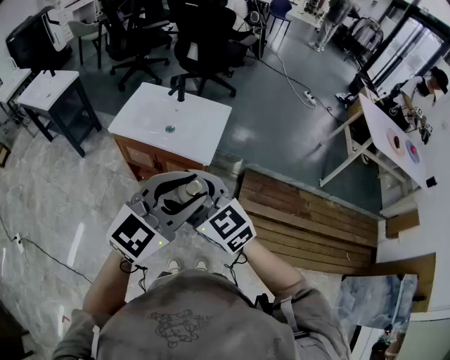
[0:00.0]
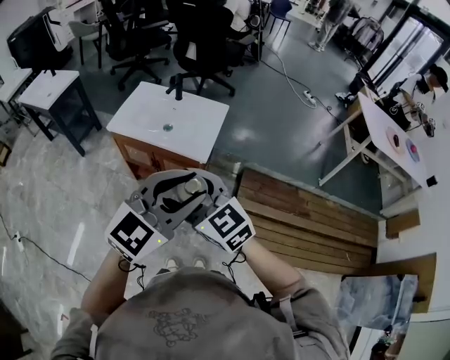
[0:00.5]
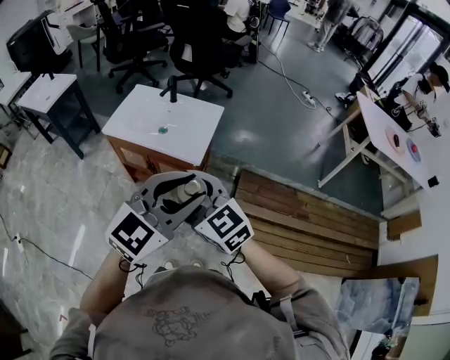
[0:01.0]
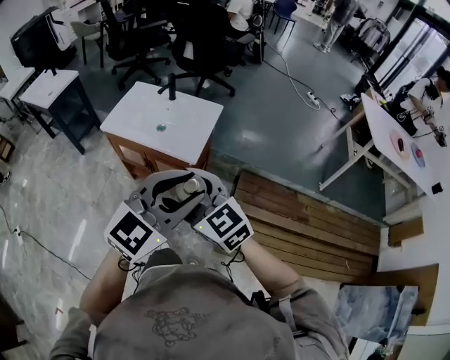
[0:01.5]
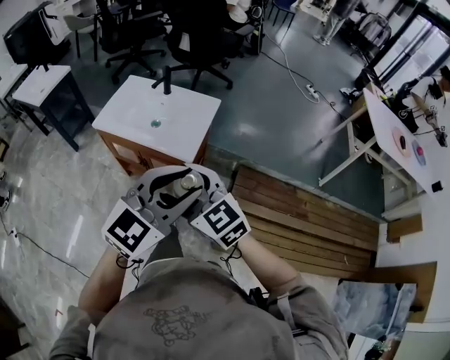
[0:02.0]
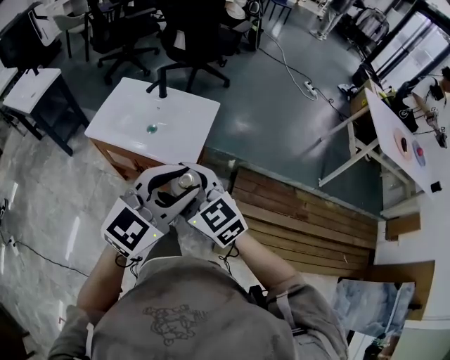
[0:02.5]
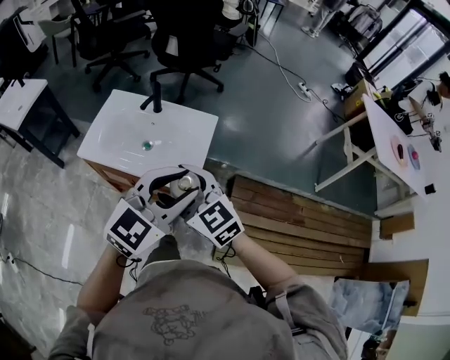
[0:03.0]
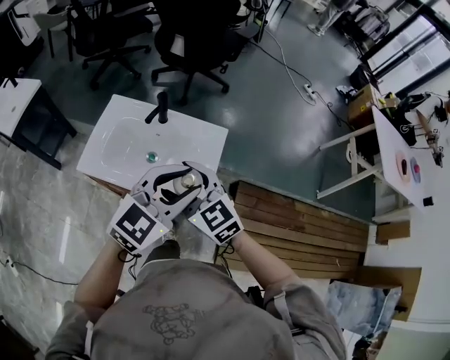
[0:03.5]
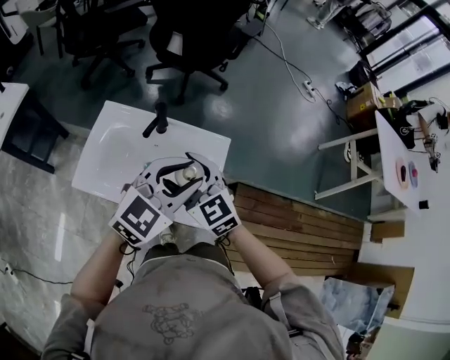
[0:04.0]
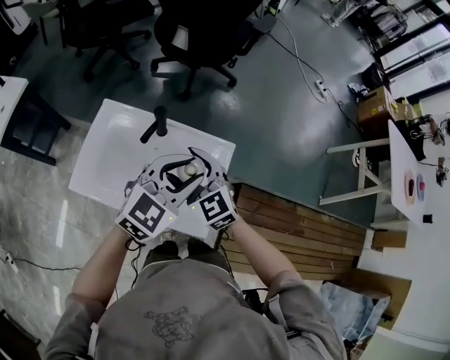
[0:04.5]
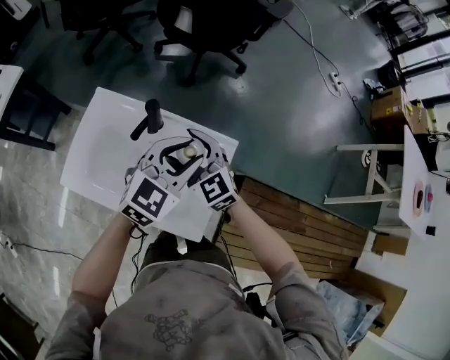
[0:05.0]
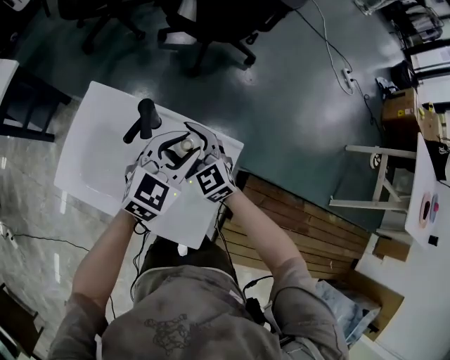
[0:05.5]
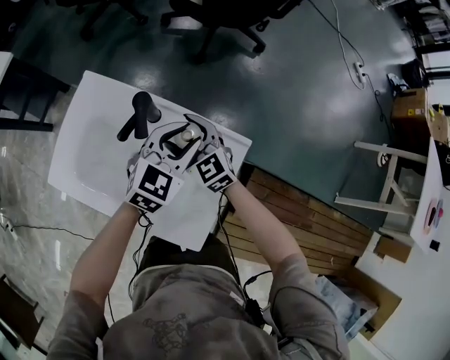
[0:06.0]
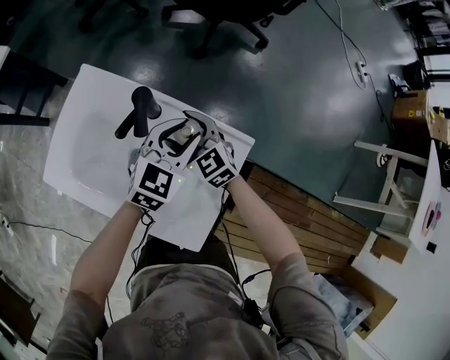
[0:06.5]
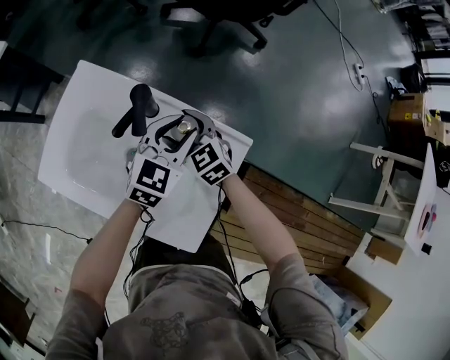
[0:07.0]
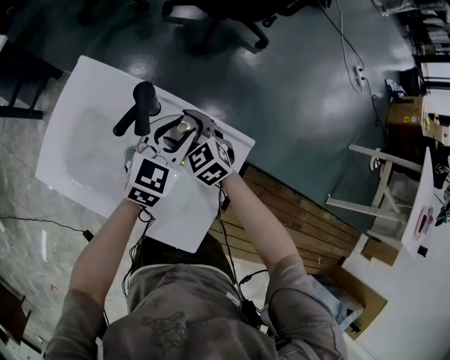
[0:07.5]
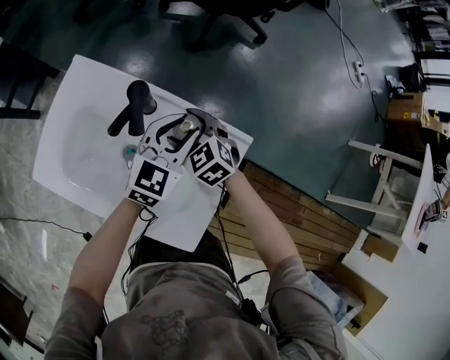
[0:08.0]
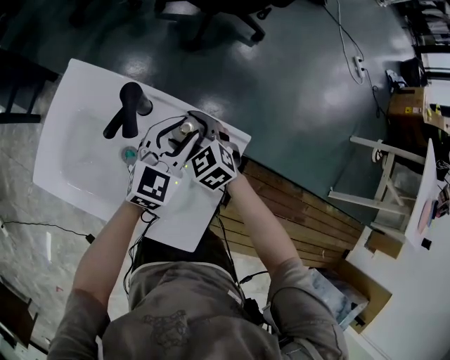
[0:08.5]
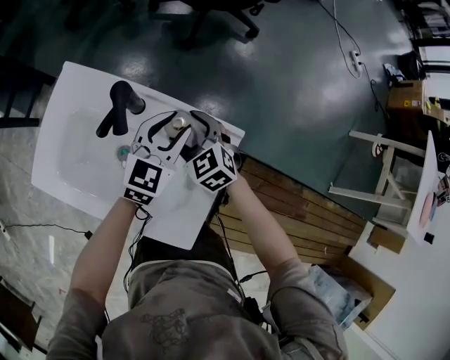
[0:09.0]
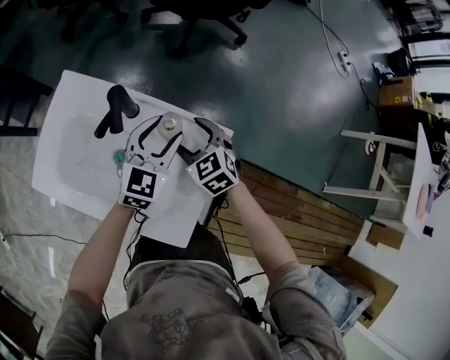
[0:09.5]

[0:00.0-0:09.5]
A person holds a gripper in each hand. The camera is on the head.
0:00.0 to 0:02.0: The left gripper shifts approximately 10 cm to the right and forward. The right gripper is displaced to the right by roughly 10 cm.
0:02.0 to 0:04.0: Both grippers are carried forward, some 40 cm.
0:04.0 to 0:05.5: Both grippers travel together forward and downward, roughly 25 cm.
0:05.5 to 0:07.5: Both grippers move downward, roughly 10 cm.
0:07.5 to 0:09.5: The right gripper moves to the right, roughly 10 cm.

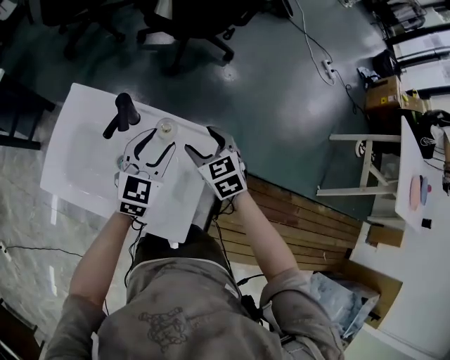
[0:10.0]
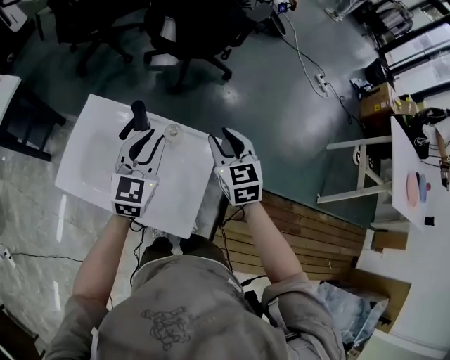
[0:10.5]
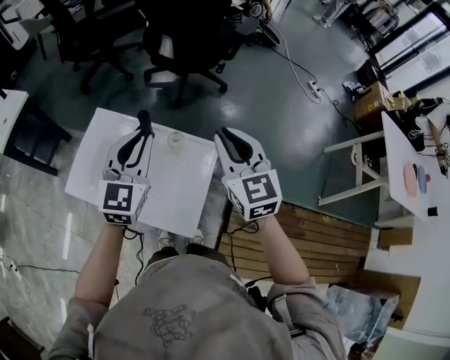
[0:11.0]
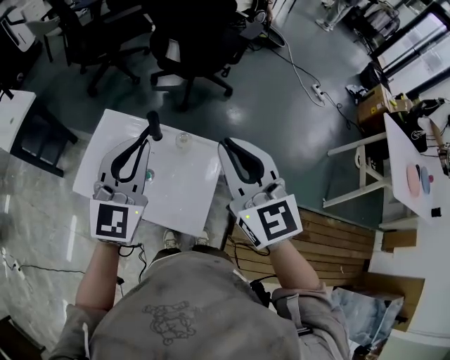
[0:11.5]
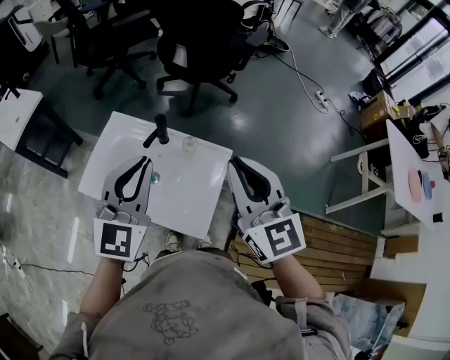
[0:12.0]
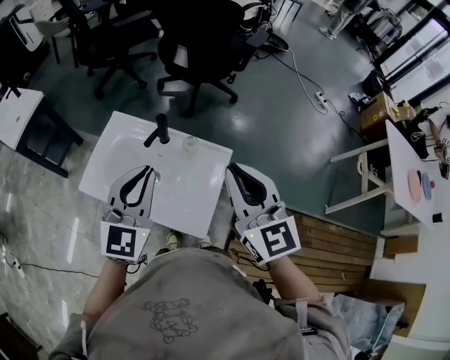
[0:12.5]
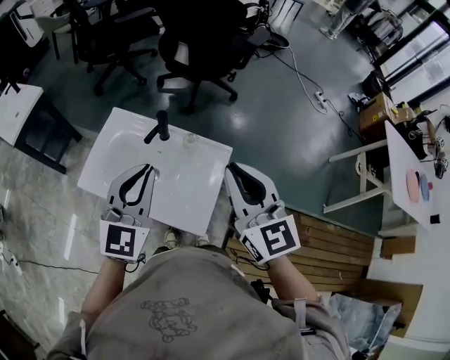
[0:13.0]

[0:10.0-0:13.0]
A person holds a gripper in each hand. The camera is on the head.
0:10.0 to 0:11.5: The grippers both shift upward and backward by roughly 35 cm. The right gripper angles its fingers upward, by about 40 degrees, and closes up. The left gripper changes its angle by about 20 degrees, and closes up.
0:11.5 to 0:13.0: The right gripper changes place by about 5 cm; the left gripper is displaced backward by about 5 cm.

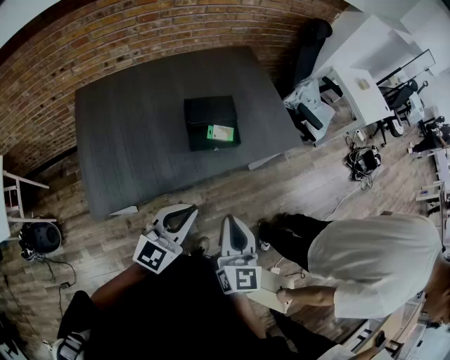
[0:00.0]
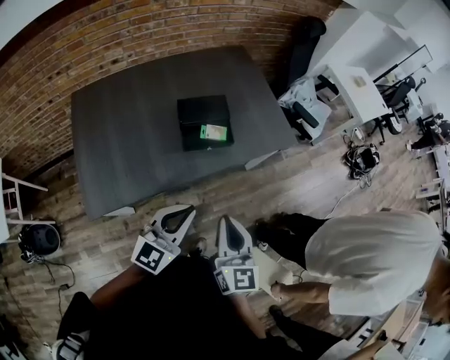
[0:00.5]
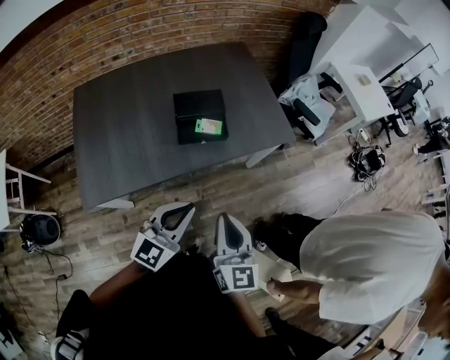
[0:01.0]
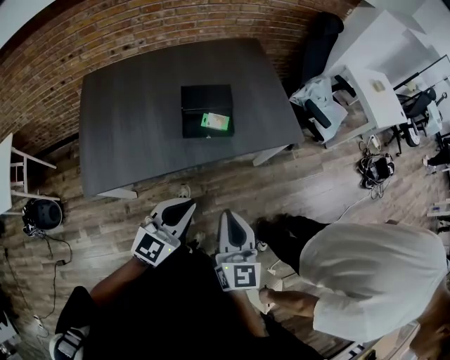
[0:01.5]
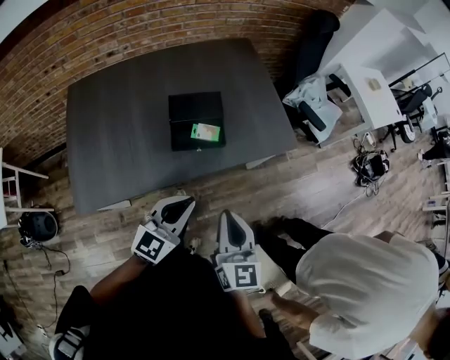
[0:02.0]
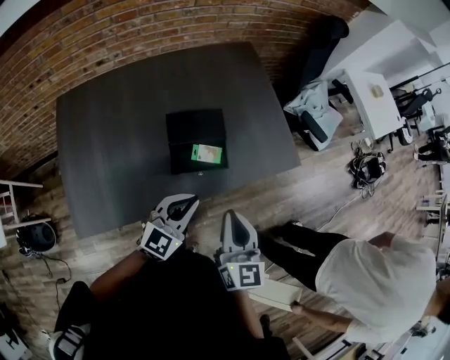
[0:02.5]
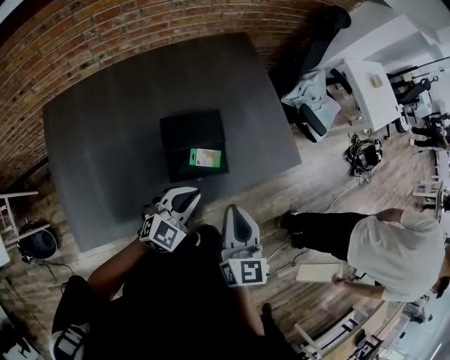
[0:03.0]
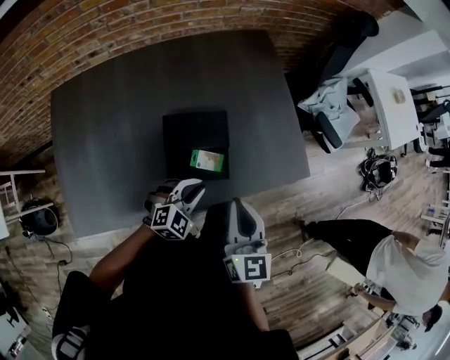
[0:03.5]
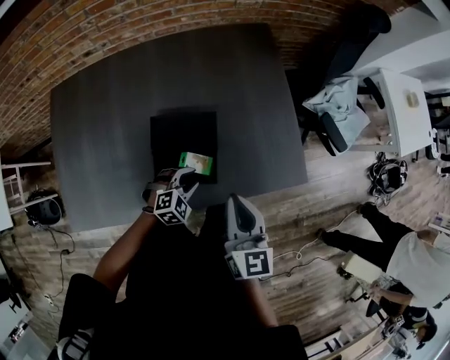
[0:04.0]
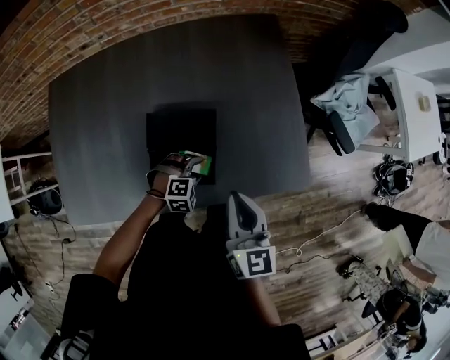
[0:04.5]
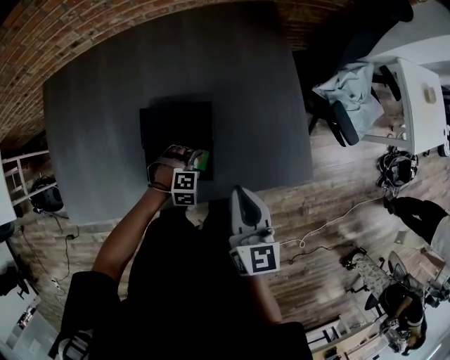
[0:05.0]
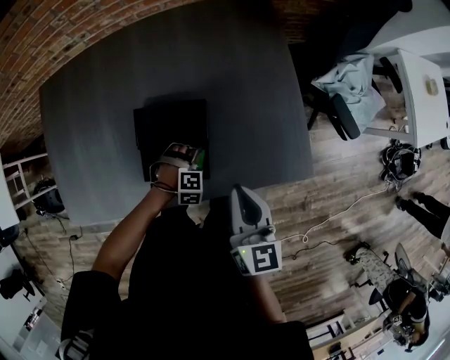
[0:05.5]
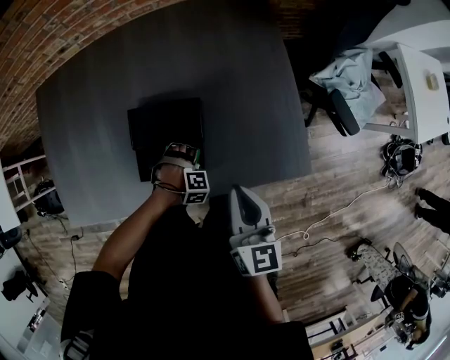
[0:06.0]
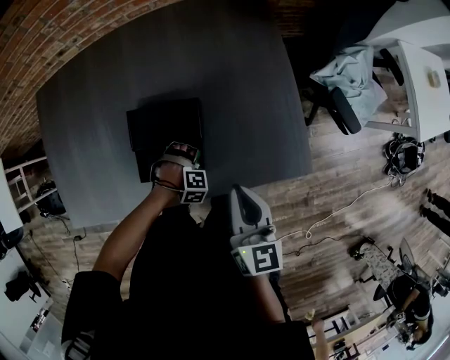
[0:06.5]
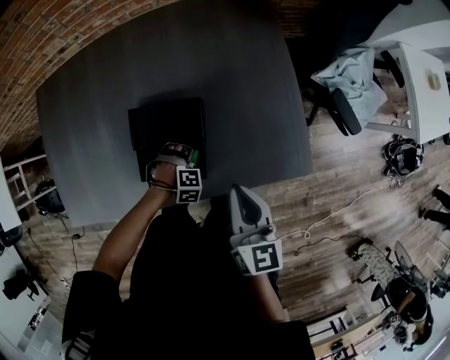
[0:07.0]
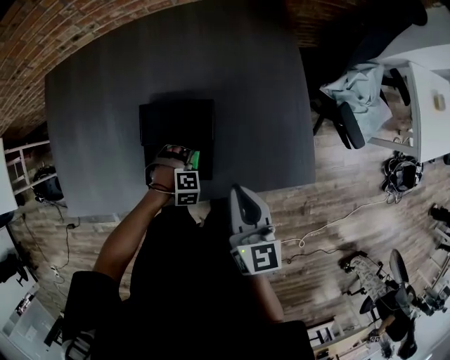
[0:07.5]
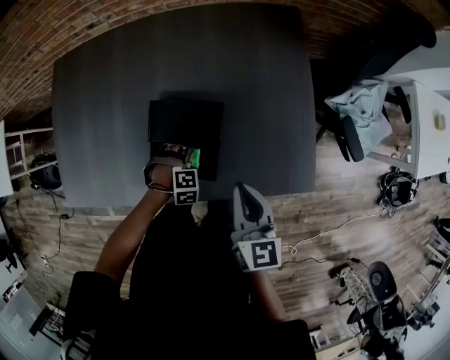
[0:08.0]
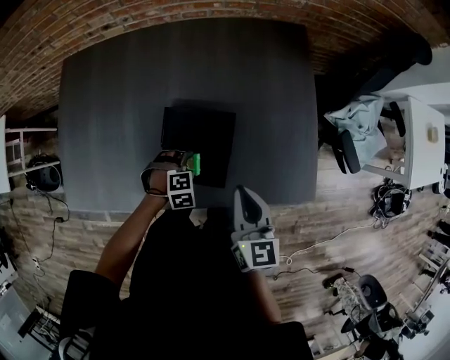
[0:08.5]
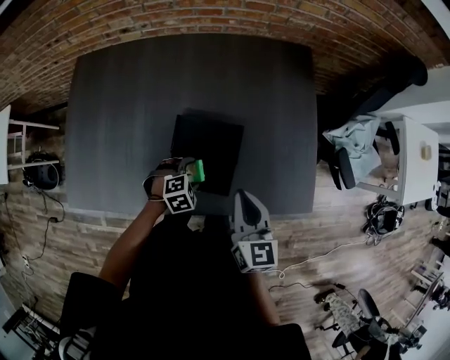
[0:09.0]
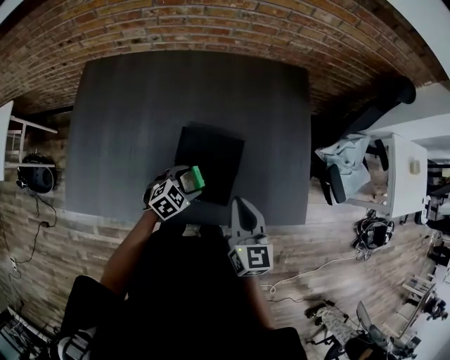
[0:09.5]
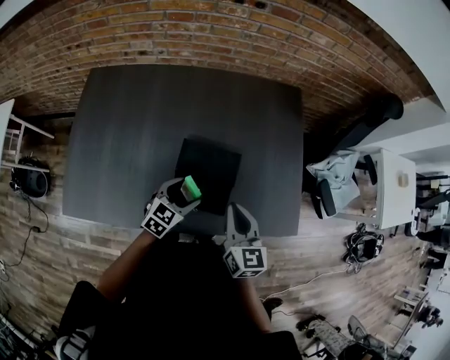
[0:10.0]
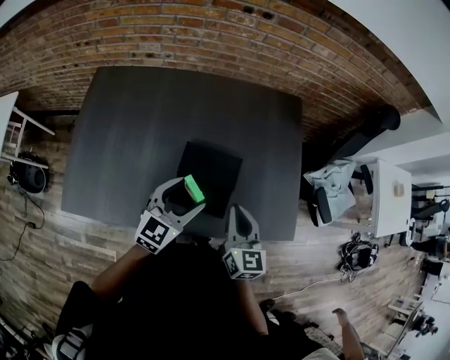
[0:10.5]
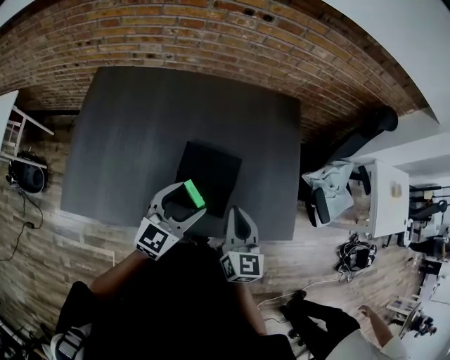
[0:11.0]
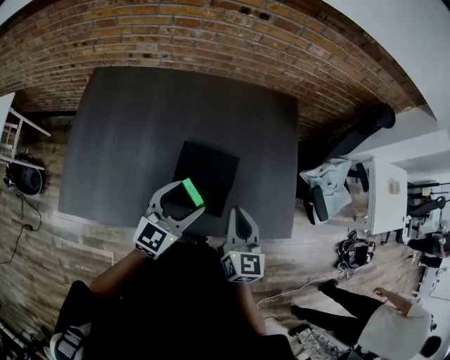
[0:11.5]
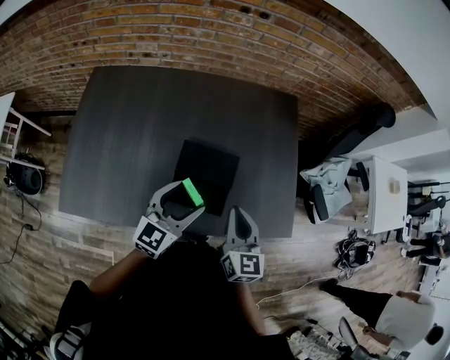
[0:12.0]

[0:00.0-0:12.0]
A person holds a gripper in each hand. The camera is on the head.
0:00.0 to 0:02.0: The left gripper is displaced forward and to the right by some 15 cm, while the right gripper is displaced to the right and forward by roughly 10 cm.
0:02.0 to 0:04.0: The right gripper is displaced forward by approximately 30 cm. The left gripper is displaced forward and downward by some 40 cm, and tips its fingers downward by about 40 degrees.
0:04.0 to 0:06.0: The right gripper ends up approximately 10 cm from where it was, while the left gripper heads downward, covering about 10 cm, changes its angle by some 50 degrees, and opens its fingers.
0:06.0 to 0:08.0: The left gripper moves some 5 cm.
0:08.0 to 0:10.0: The left gripper goes some 15 cm upward, and tilts its fingers roughly 50 degrees upward; the right gripper shifts by roughly 10 cm.
0:10.0 to 0:12.0: The left gripper moves upward, roughly 15 cm, and rotates roughly 20 degrees.

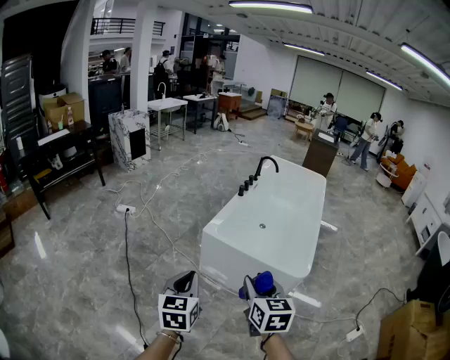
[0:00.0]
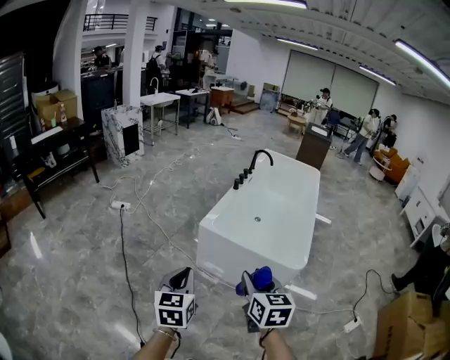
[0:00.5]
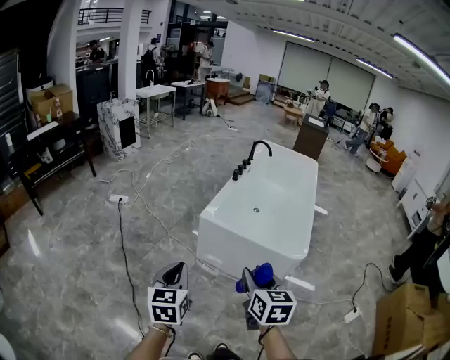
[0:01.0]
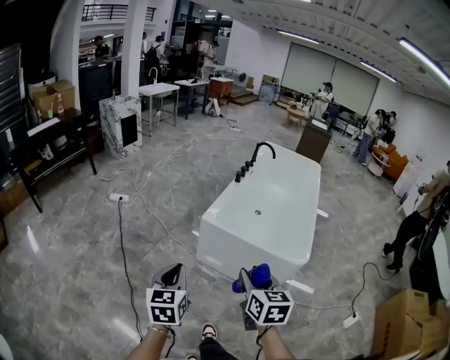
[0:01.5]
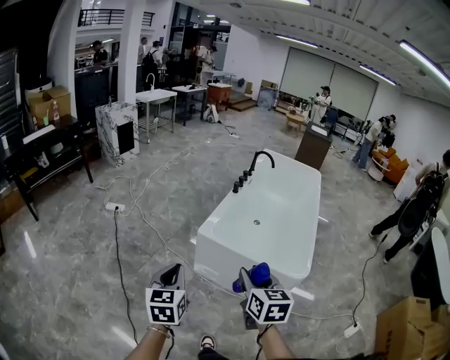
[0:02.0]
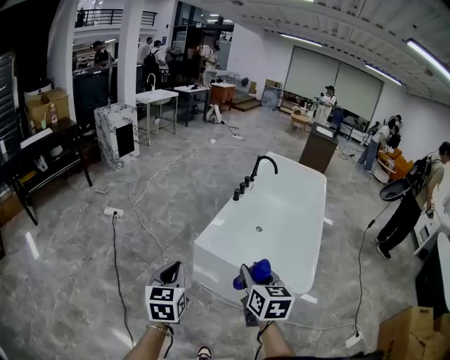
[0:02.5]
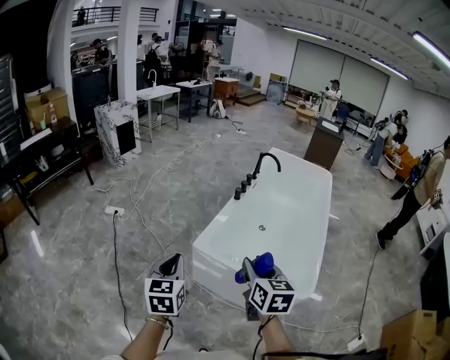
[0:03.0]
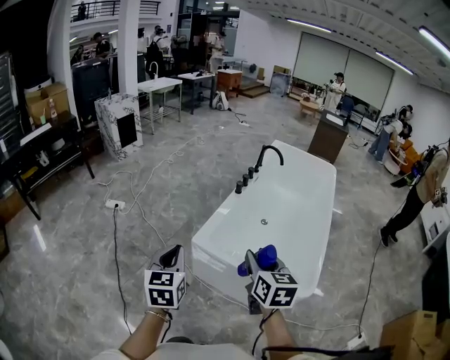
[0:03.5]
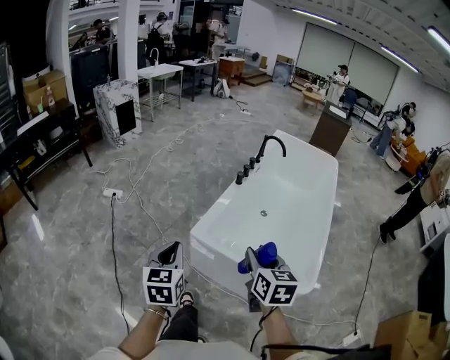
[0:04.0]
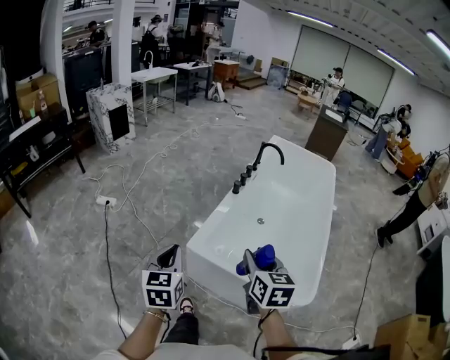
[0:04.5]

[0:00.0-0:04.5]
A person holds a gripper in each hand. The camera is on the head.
0:00.0 to 0:02.0: The right gripper travels forward by roughly 5 cm. Meanwhile the left gripper heads forward and to the left, covering about 10 cm.
0:02.0 to 0:04.5: Both grippers travel together forward, roughly 25 cm.
